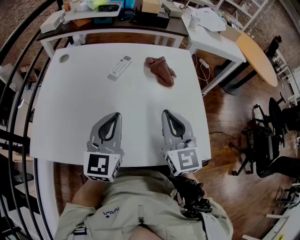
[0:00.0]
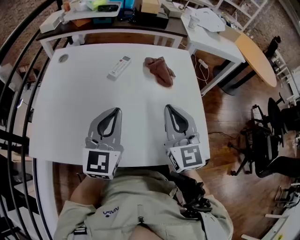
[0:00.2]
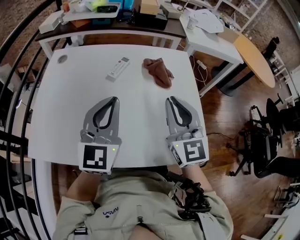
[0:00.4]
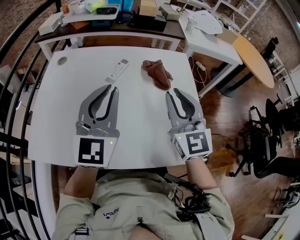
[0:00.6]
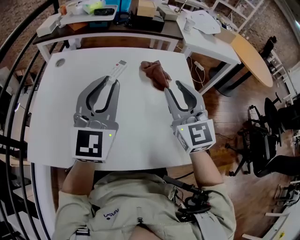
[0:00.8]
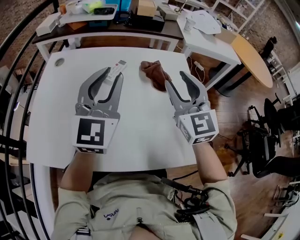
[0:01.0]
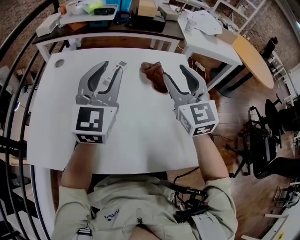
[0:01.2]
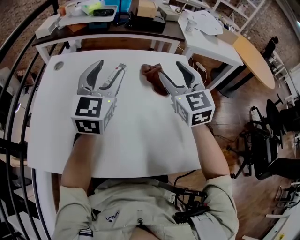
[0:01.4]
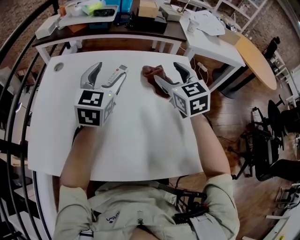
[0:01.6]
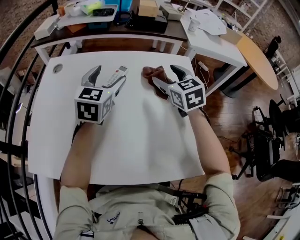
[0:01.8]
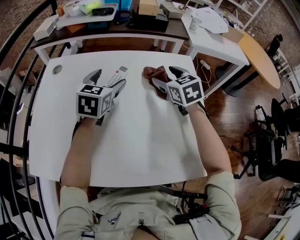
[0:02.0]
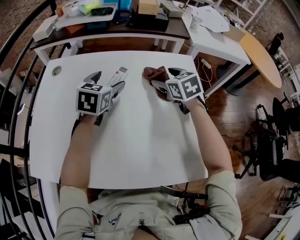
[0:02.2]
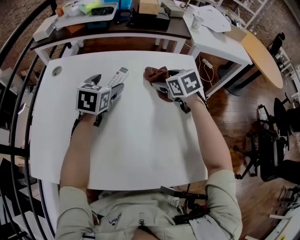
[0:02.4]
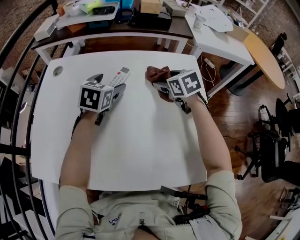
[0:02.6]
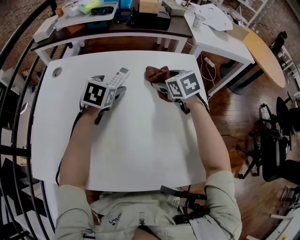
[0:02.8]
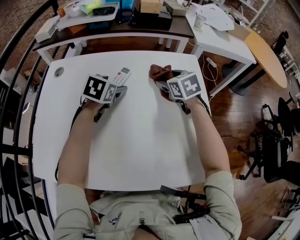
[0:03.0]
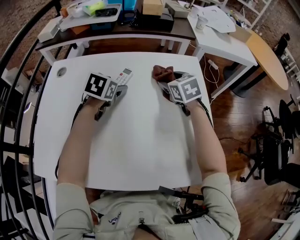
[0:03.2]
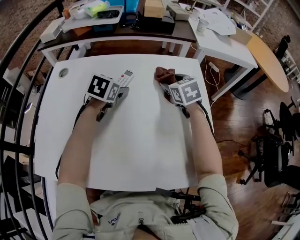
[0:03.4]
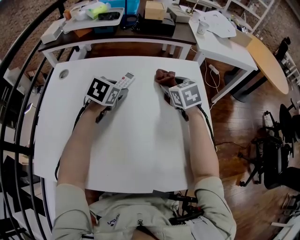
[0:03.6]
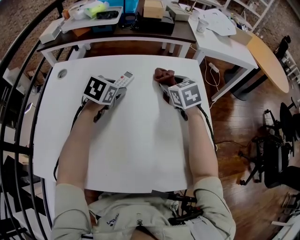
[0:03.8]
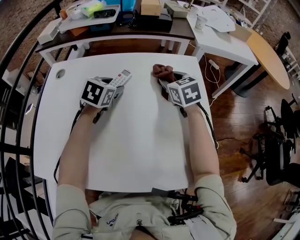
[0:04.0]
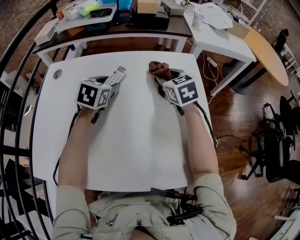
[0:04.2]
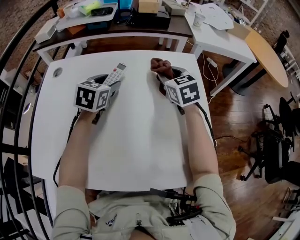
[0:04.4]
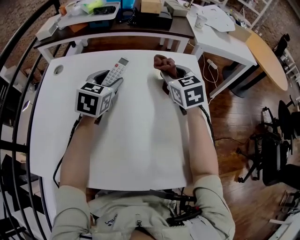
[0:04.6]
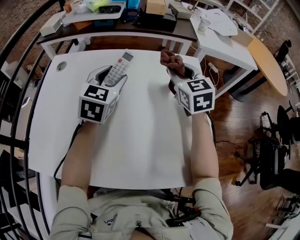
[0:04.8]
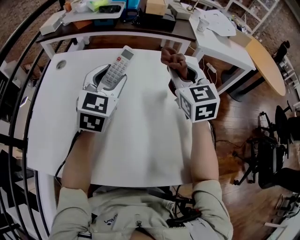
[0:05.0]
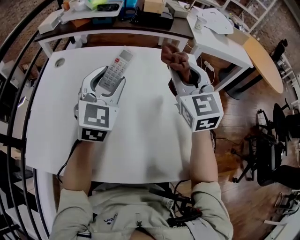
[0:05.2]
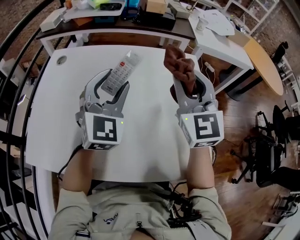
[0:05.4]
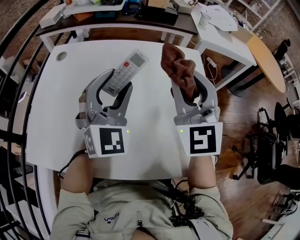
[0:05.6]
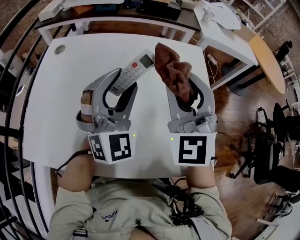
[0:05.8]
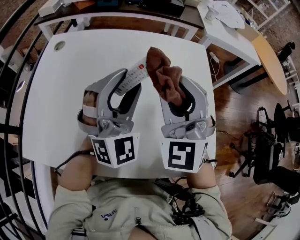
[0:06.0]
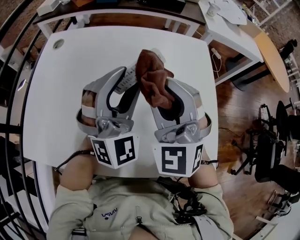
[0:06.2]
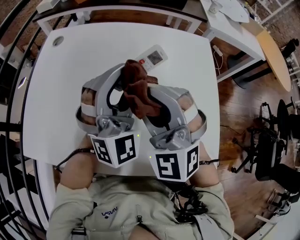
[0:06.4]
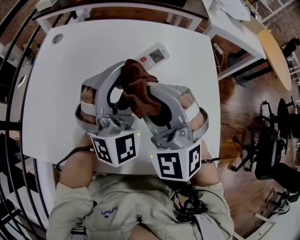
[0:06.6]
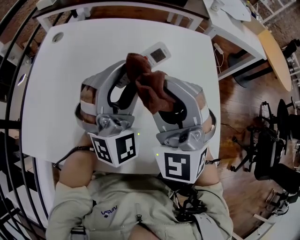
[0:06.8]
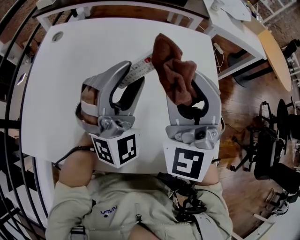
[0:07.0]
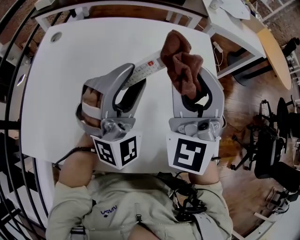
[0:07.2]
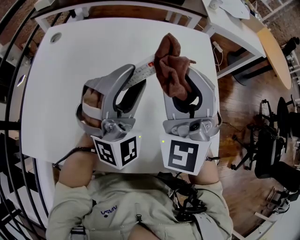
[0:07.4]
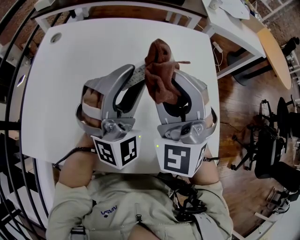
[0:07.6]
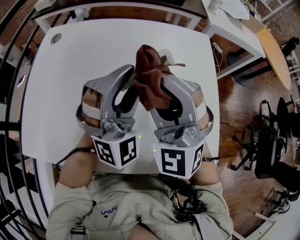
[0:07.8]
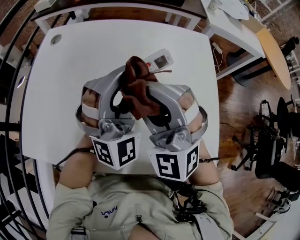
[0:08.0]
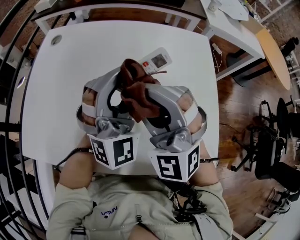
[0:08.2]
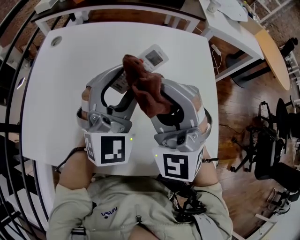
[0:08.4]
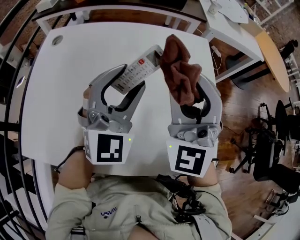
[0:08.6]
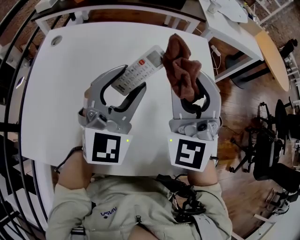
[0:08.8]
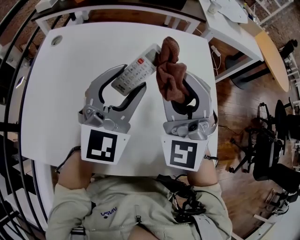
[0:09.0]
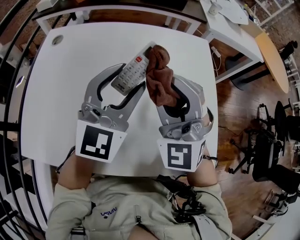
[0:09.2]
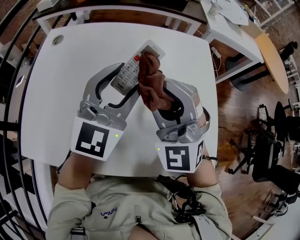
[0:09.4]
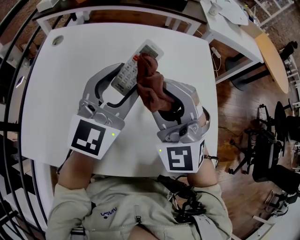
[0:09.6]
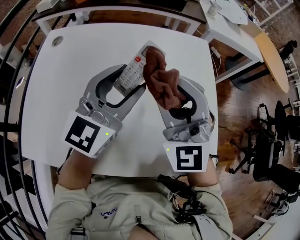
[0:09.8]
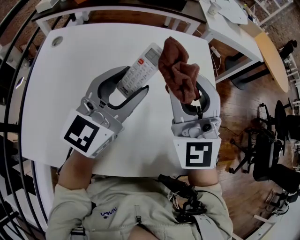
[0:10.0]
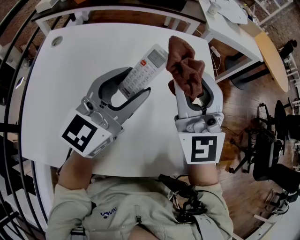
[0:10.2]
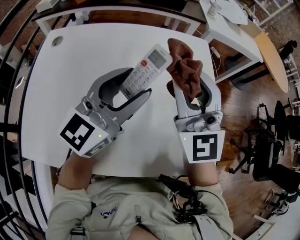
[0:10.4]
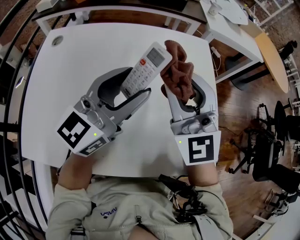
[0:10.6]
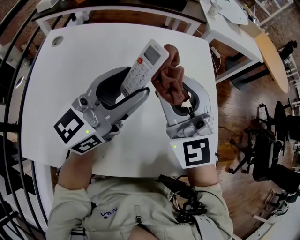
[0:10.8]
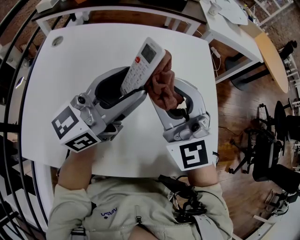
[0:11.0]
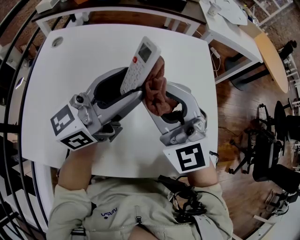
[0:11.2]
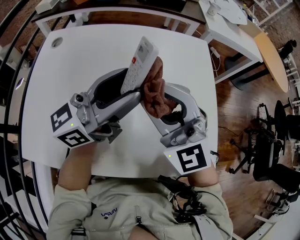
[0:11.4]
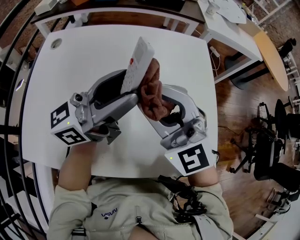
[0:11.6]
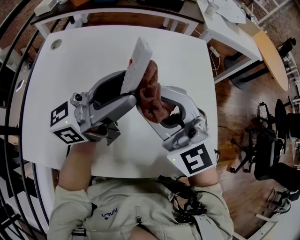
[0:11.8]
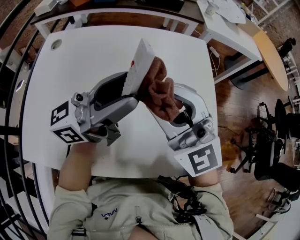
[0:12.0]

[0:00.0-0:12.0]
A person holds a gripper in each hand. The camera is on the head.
0:00.0 to 0:01.6: Both grippers move forward, roughly 20 cm. The left gripper opens up, while the right gripper opens up.
0:01.6 to 0:03.0: Both grippers move downward and forward, roughly 15 cm. The right gripper swivels roughly 20 degrees. Meanwhile the left gripper tips its fingers downward by about 40 degrees.
0:03.0 to 0:04.4: The left gripper closes. The right gripper closes its fingers.
0:04.4 to 0:06.0: The right gripper moves backward, upward and to the left, roughly 25 cm, and rotates some 50 degrees, while the left gripper is displaced backward and upward by roughly 20 cm, and angles its fingers upward, by some 40 degrees.
0:06.0 to 0:07.6: The right gripper swings left and right, approximately 10 cm each way, with 2 reversals.
0:07.6 to 0:09.0: The left gripper turns by approximately 40 degrees. Meanwhile the right gripper reaches about 5 cm to the right, then returns.
0:09.0 to 0:10.4: The left gripper rotates roughly 30 degrees, while the right gripper rotates about 20 degrees.
0:10.4 to 0:12.0: The left gripper swivels approximately 40 degrees, while the right gripper moves backward, about 5 cm, and swivels some 20 degrees.

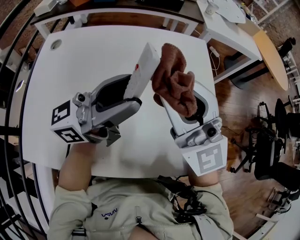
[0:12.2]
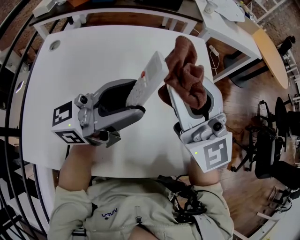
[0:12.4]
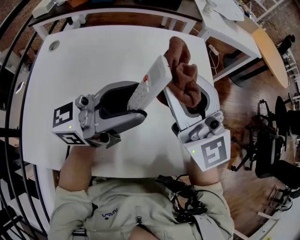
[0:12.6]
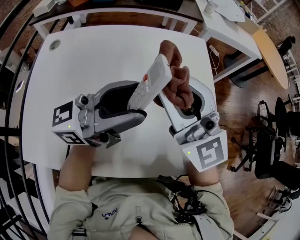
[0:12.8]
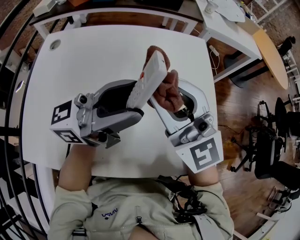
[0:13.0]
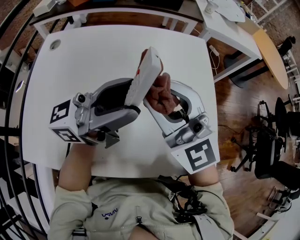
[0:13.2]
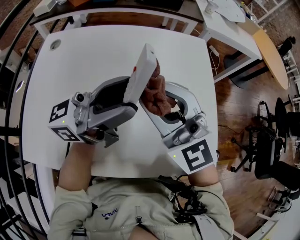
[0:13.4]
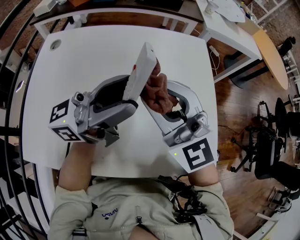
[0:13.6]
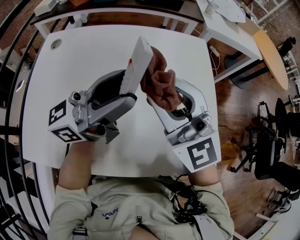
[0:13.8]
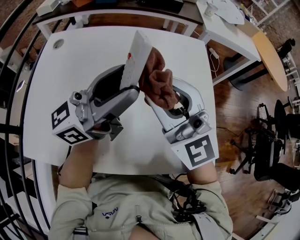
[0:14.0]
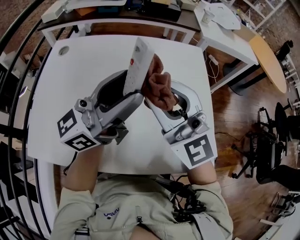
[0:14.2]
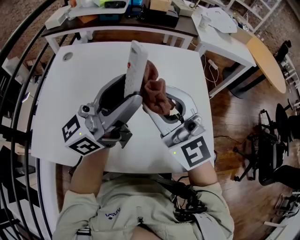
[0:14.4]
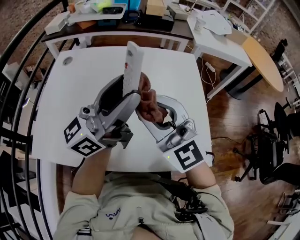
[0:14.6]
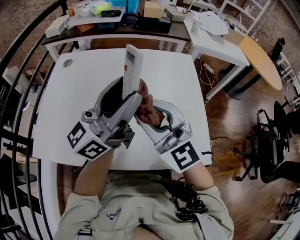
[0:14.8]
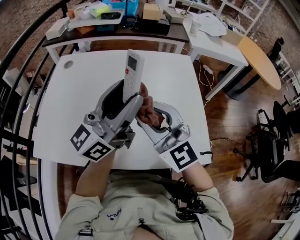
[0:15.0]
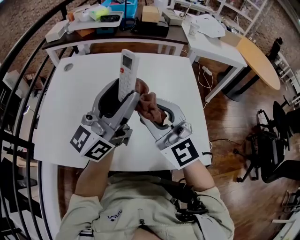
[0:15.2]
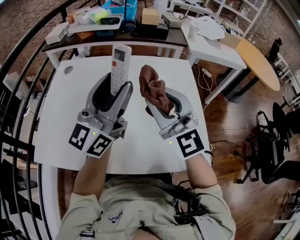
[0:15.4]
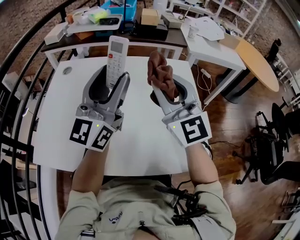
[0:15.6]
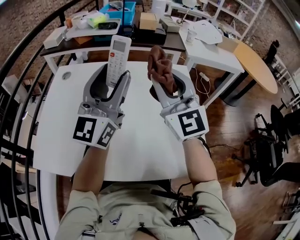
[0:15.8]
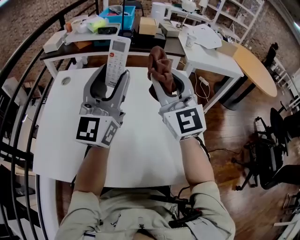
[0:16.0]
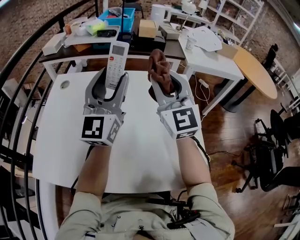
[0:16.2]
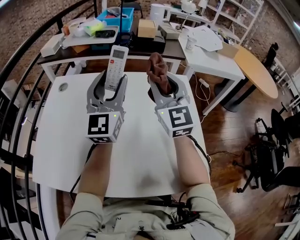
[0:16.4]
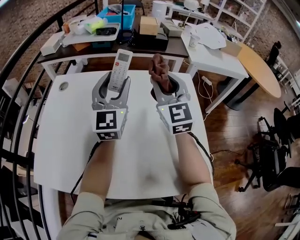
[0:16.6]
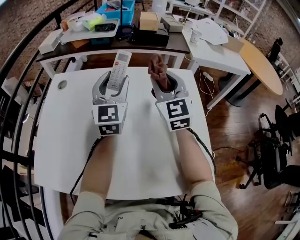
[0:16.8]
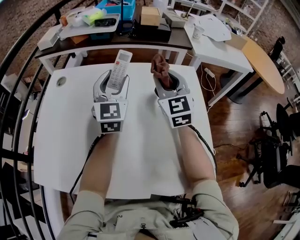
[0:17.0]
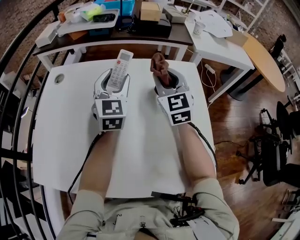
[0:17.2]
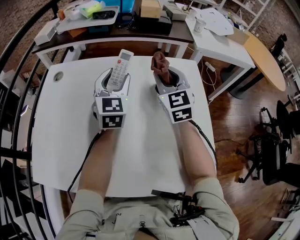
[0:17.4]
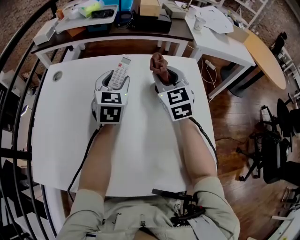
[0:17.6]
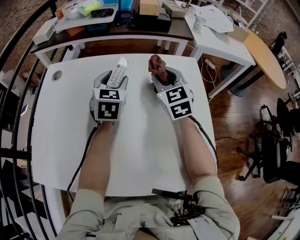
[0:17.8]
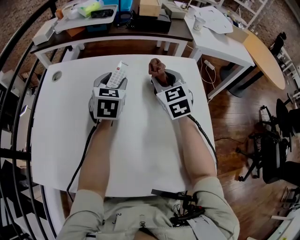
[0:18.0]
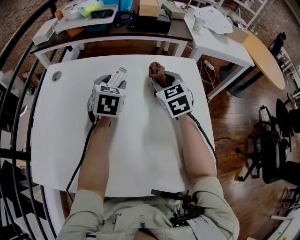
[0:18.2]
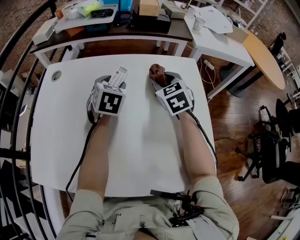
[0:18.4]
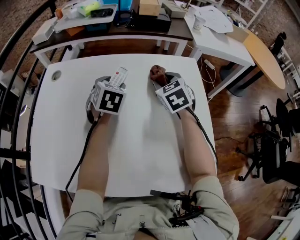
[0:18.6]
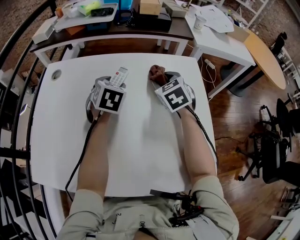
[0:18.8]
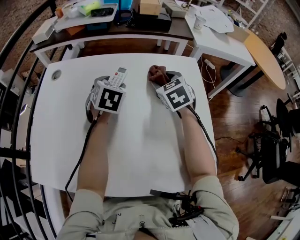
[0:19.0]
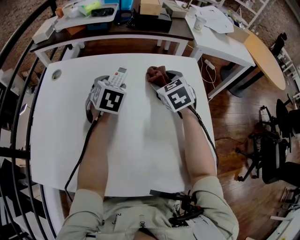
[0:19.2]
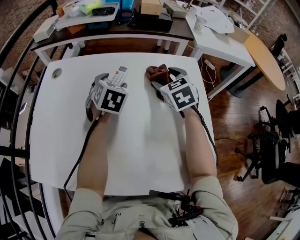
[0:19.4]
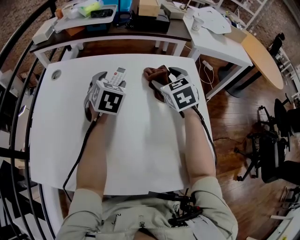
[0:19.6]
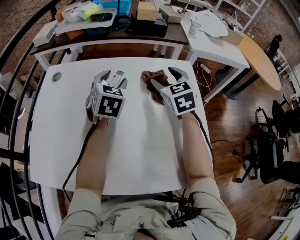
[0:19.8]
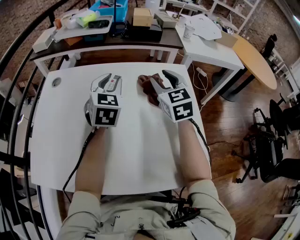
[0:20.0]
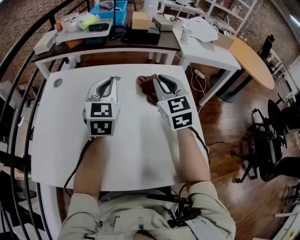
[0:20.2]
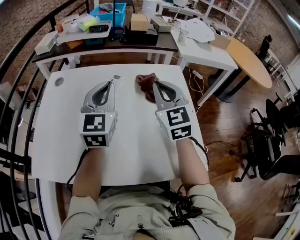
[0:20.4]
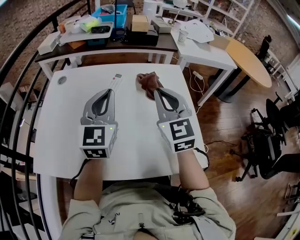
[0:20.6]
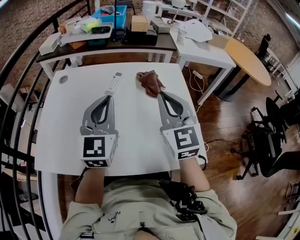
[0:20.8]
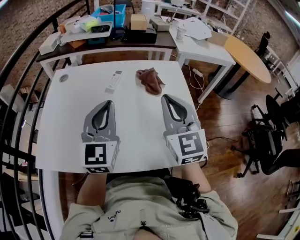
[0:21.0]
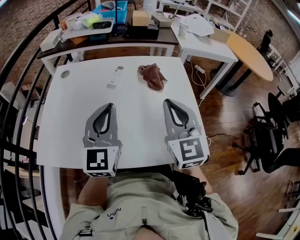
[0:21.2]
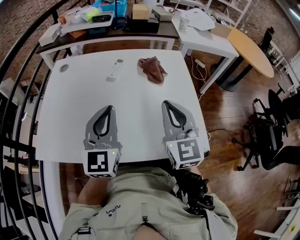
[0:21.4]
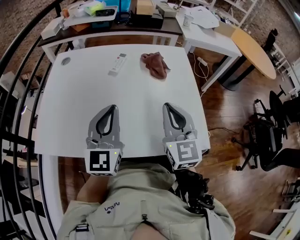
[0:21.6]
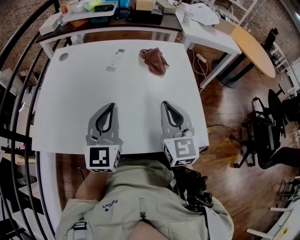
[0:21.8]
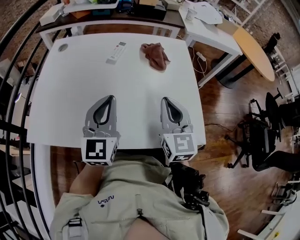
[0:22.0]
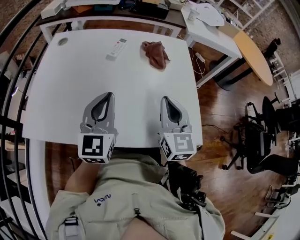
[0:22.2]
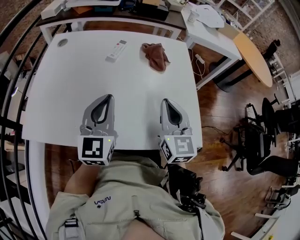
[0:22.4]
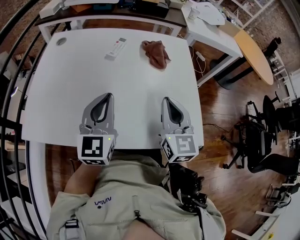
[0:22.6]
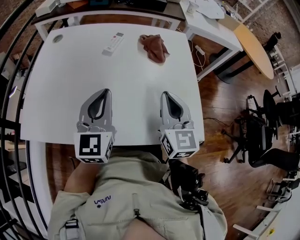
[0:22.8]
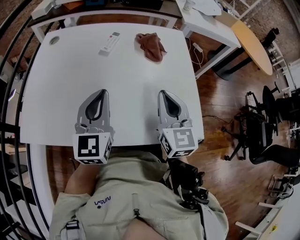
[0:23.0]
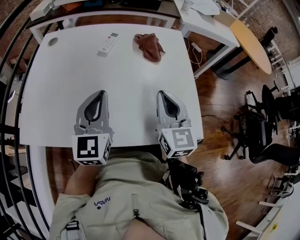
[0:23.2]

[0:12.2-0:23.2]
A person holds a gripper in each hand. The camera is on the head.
0:12.2 to 0:13.8: The grippers stay close to where they were, moving slightly.
0:13.8 to 0:15.4: The left gripper moves upward, some 5 cm, and rotates about 40 degrees.
0:15.4 to 0:17.0: The left gripper goes roughly 25 cm forward and downward, and changes its angle by some 50 degrees, while the right gripper shifts about 20 cm forward, and swivels about 20 degrees.
0:17.0 to 0:18.4: Both grippers move downward, about 10 cm. The right gripper swivels roughly 30 degrees. The left gripper tilts its fingers approximately 40 degrees downward.
0:18.4 to 0:20.0: The two grippers go about 10 cm upward. The right gripper opens, then closes again.
0:20.0 to 0:21.6: Both grippers move backward, some 25 cm. The right gripper closes, while the left gripper turns by roughly 20 degrees.
0:21.6 to 0:23.2: There are only small adjustments of the grippers.

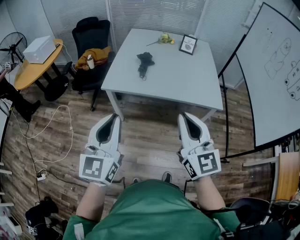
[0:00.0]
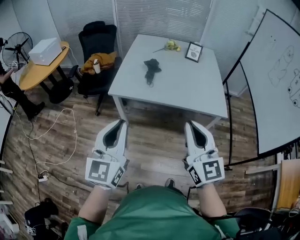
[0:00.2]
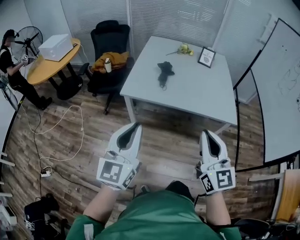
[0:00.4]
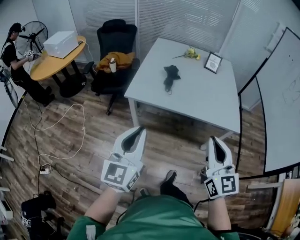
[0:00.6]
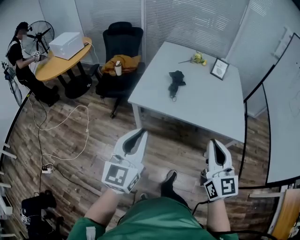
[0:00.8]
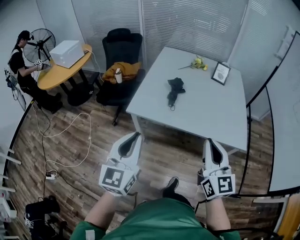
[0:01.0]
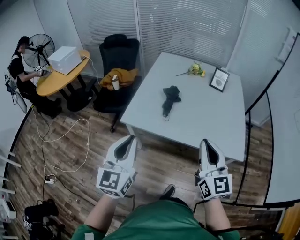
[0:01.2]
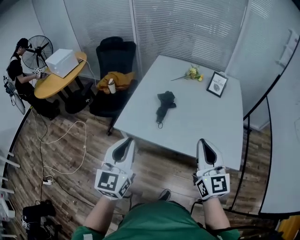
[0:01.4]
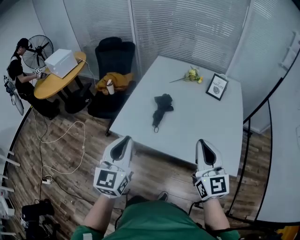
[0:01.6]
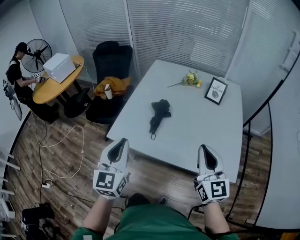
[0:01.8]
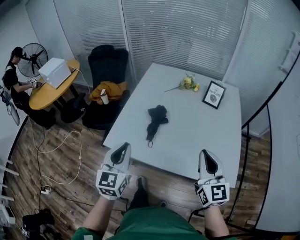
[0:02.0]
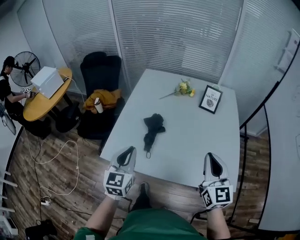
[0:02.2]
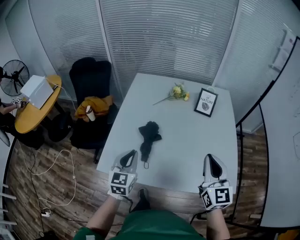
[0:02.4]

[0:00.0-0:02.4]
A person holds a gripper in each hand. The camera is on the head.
0:00.0 to 0:01.2: Both grippers travel together forward, approximately 20 cm.
0:01.2 to 0:02.4: The left gripper goes about 30 cm forward, while the right gripper shifts roughly 25 cm forward and to the right.
